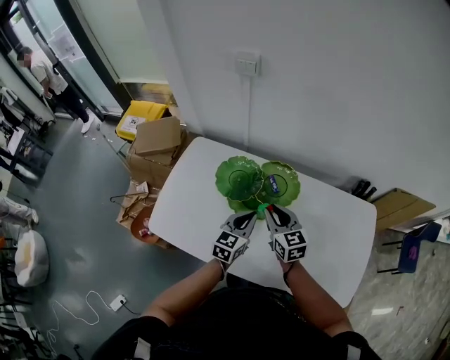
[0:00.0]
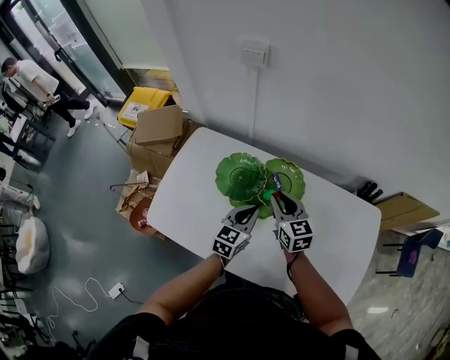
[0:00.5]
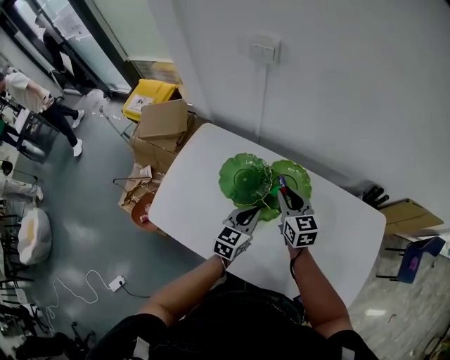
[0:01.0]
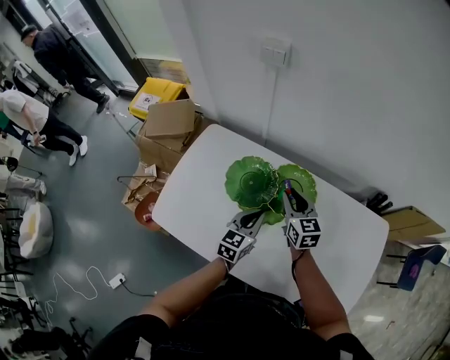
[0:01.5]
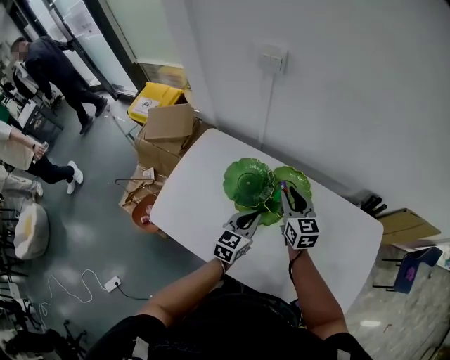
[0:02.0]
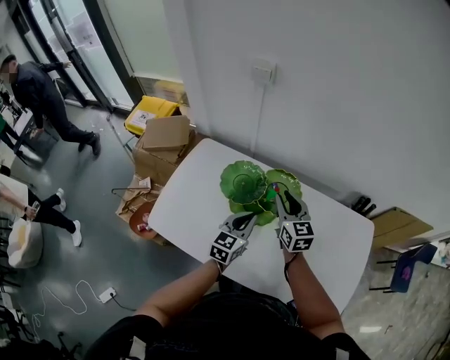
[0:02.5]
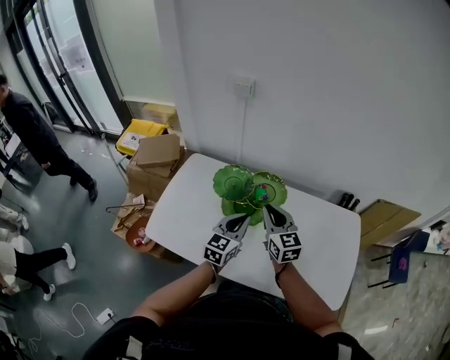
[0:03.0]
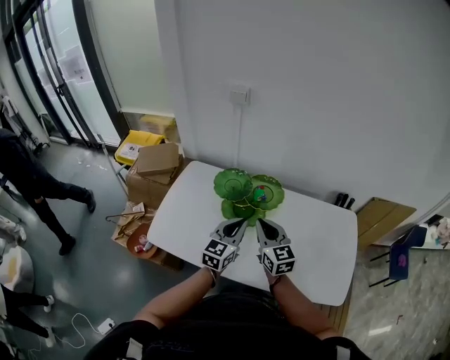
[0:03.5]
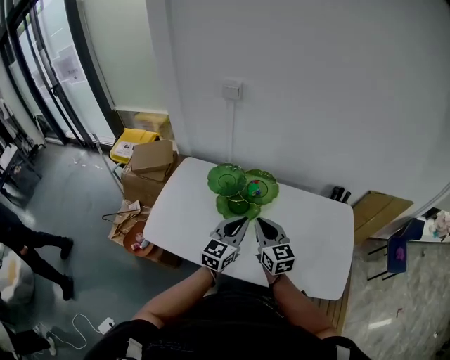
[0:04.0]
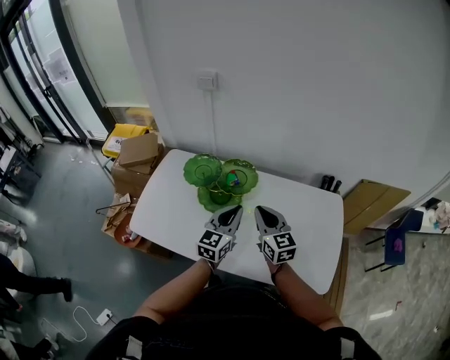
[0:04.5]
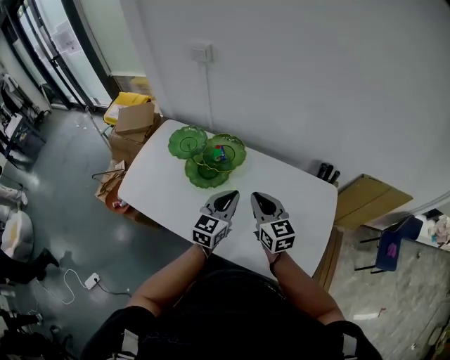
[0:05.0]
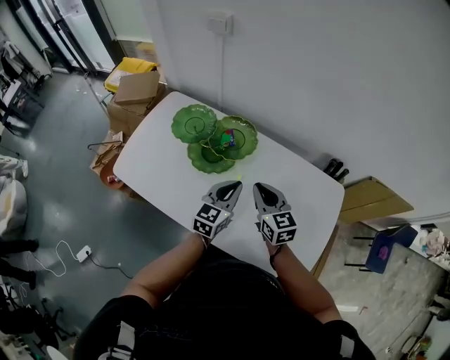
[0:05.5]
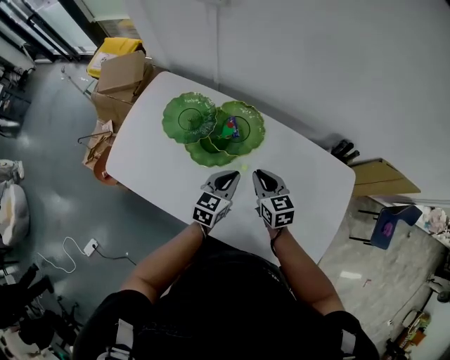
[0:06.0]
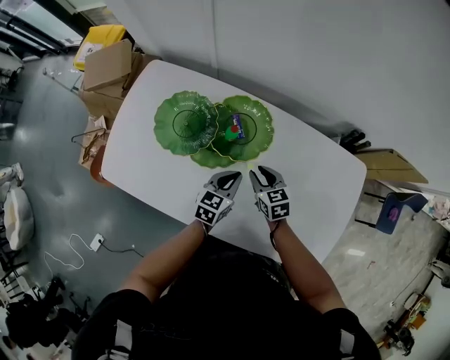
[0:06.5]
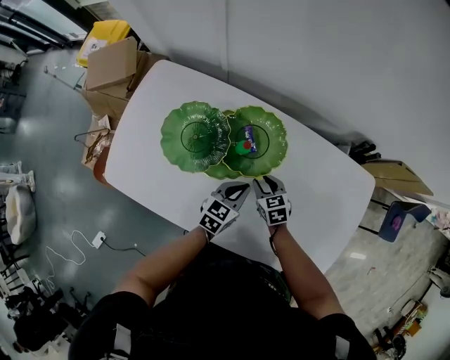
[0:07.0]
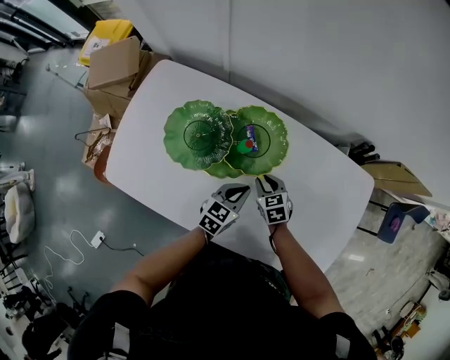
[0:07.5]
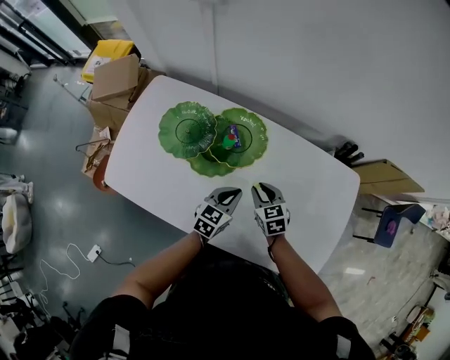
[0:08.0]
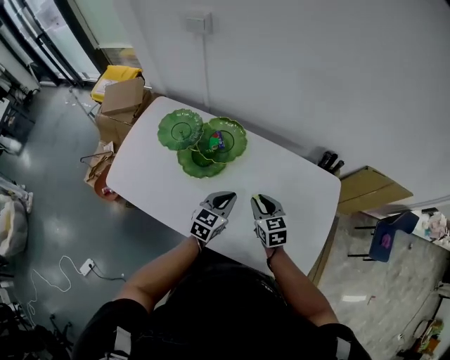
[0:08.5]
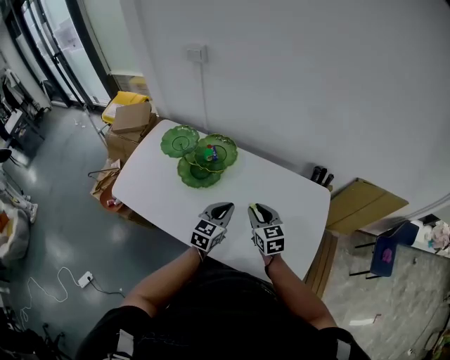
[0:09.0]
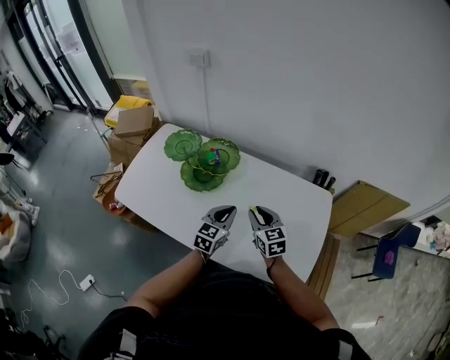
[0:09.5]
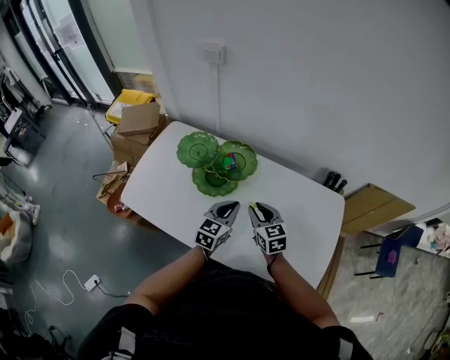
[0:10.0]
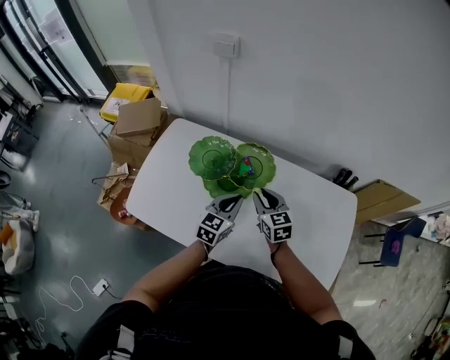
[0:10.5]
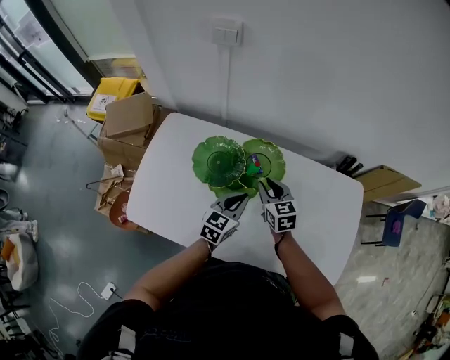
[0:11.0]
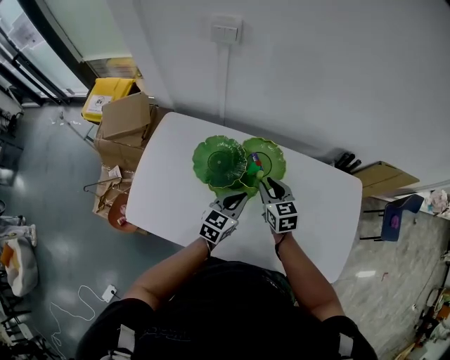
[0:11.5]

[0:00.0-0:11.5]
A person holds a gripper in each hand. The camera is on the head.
0:00.0 to 0:02.0: The right gripper moves forward, some 10 cm.
0:02.0 to 0:04.0: The right gripper shifts approximately 20 cm backward; the left gripper is displaced upward and backward by roughly 20 cm.
0:04.0 to 0:06.0: Both grippers travel together downward, to the right and forward, some 20 cm. The left gripper swivels about 20 degrees, while the right gripper rotates some 20 degrees.
0:06.0 to 0:07.5: The left gripper moves downward, about 10 cm, while the right gripper is displaced downward by roughly 15 cm, and rotates roughly 20 degrees.
0:07.5 to 0:09.5: Both grippers move upward, backward and to the right, roughly 25 cm. The left gripper swivels about 20 degrees, while the right gripper turns by approximately 30 degrees.
0:09.5 to 0:11.5: The grippers both shift to the left and forward by roughly 25 cm.

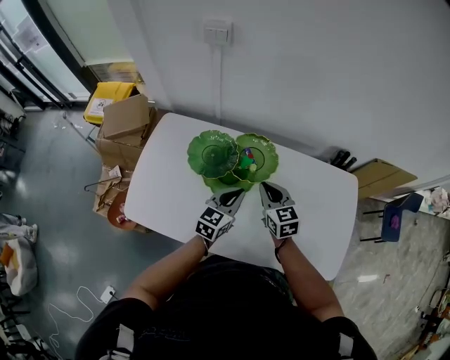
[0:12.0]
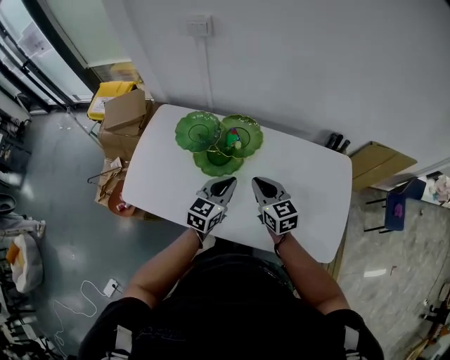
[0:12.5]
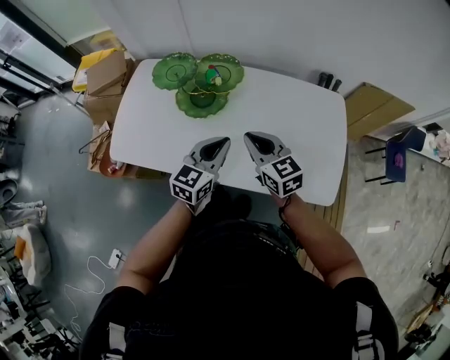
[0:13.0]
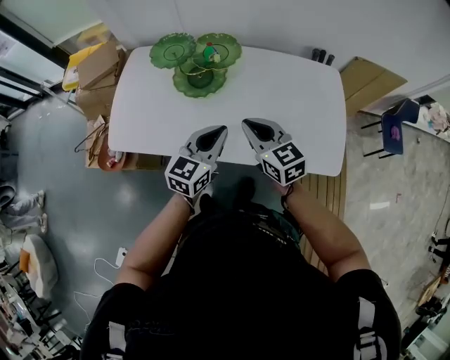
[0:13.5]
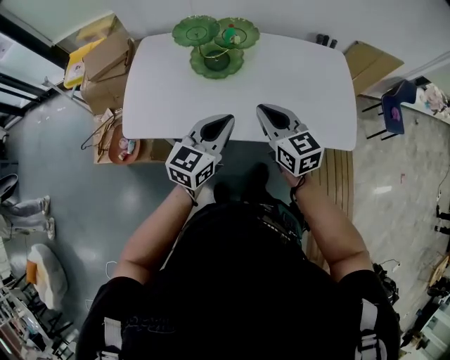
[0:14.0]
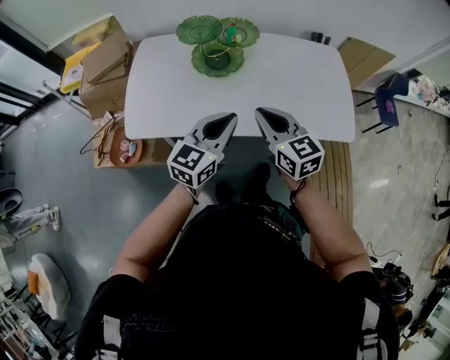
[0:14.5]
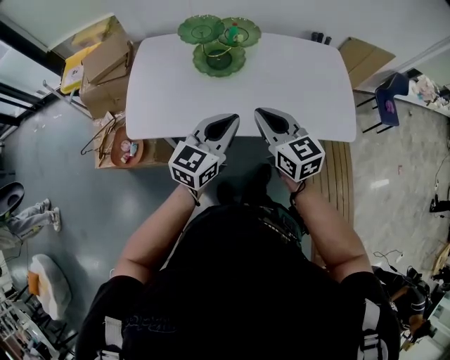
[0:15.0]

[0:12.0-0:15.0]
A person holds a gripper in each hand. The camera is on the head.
0:12.0 to 0:13.5: Both grippers move backward, approximately 20 cm.
0:13.5 to 0:15.0: Both grippers travel together to the left and backward, approximately 15 cm.

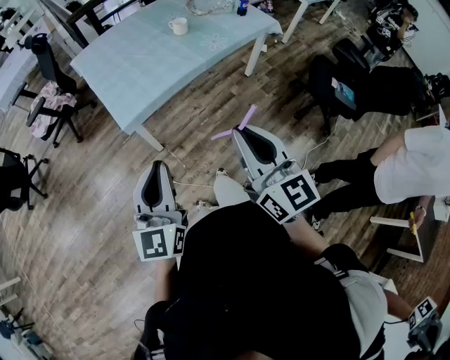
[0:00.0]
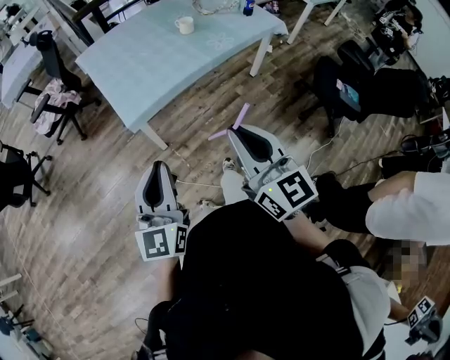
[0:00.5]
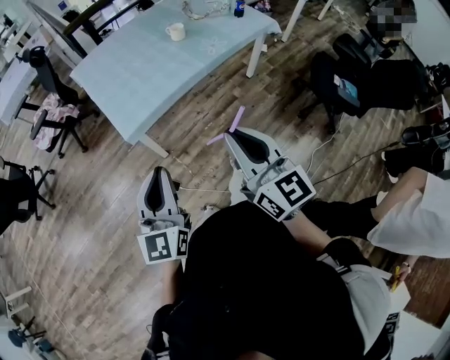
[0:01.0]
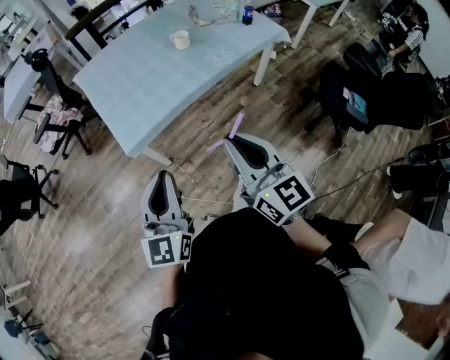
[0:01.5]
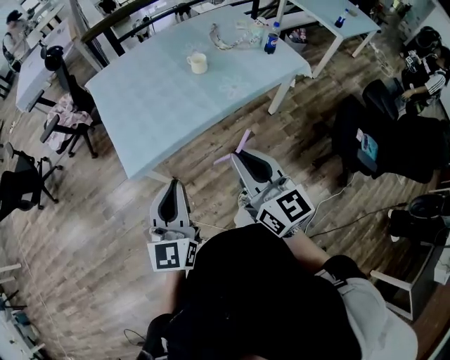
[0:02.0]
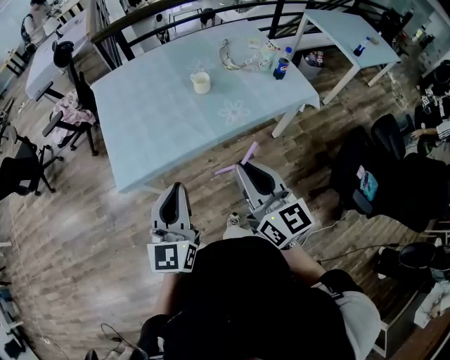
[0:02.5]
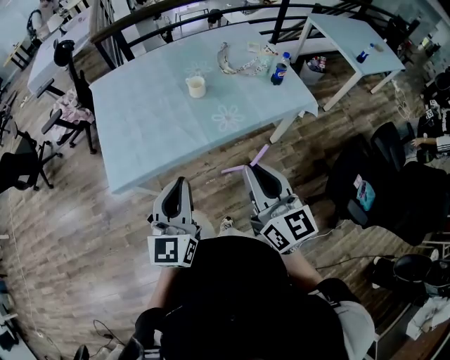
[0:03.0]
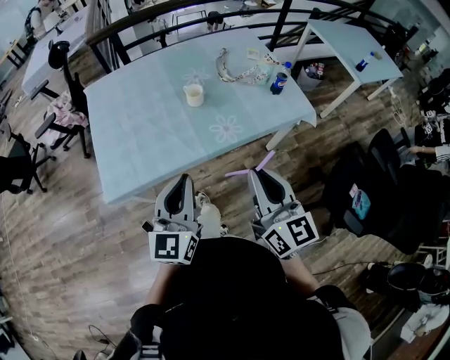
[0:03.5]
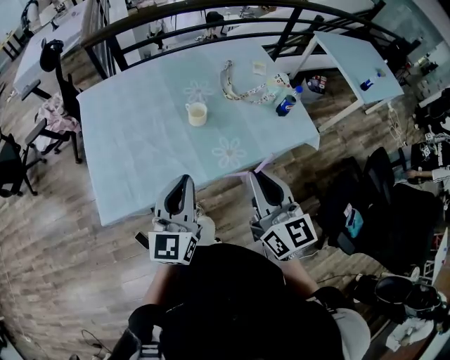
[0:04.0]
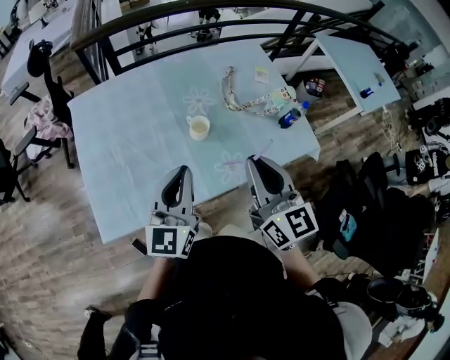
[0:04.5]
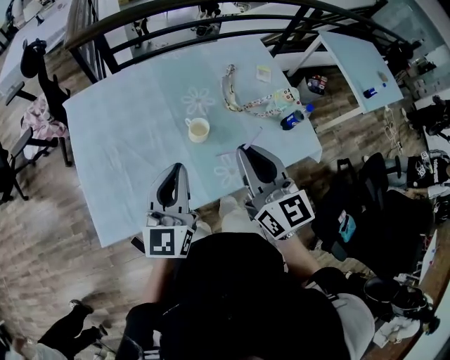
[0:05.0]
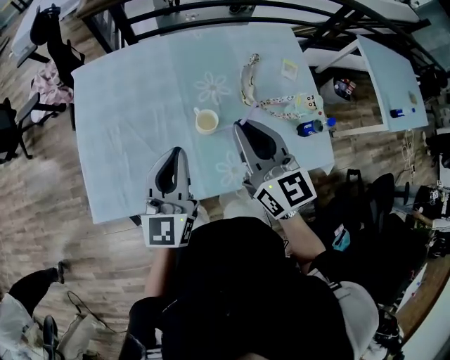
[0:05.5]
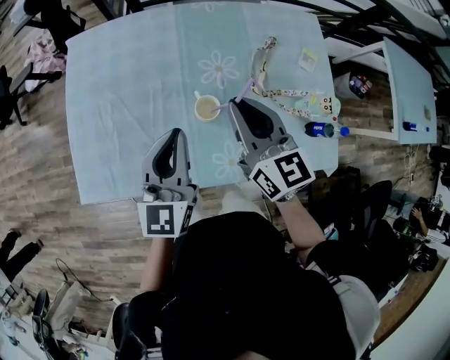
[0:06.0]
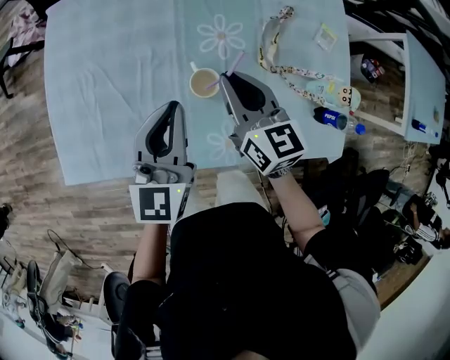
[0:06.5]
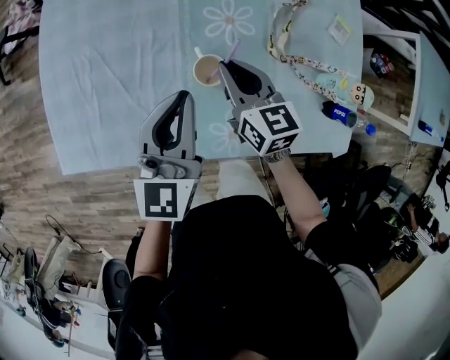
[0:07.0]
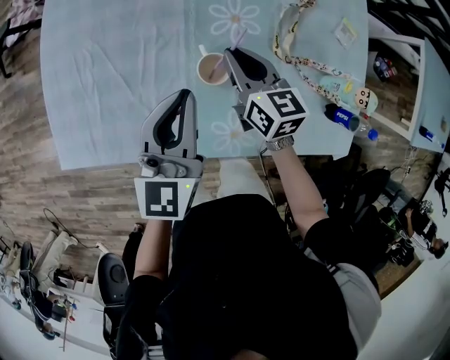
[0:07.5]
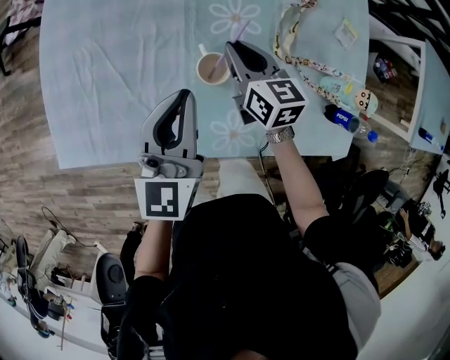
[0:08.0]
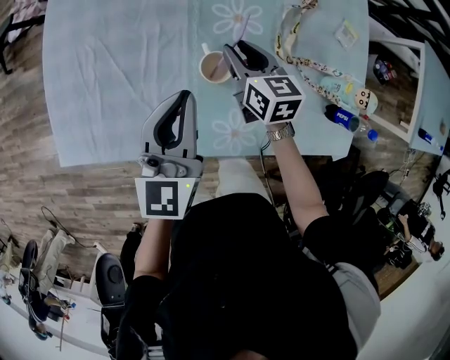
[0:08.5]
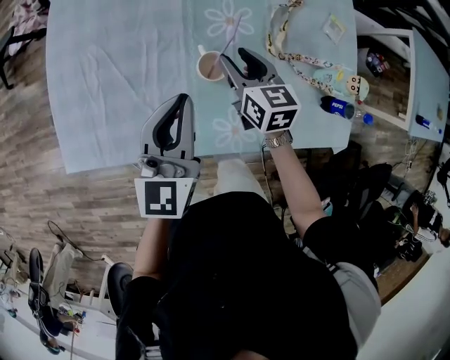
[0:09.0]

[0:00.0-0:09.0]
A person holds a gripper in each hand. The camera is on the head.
0:00.0 to 0:02.0: Both grippers move forward and to the right, about 20 cm.
0:02.0 to 0:04.5: The grippers both shift forward by about 40 cm.
0:04.5 to 0:07.0: The left gripper shifts about 20 cm forward, downward and to the right, and swivels about 20 degrees; the right gripper is displaced downward and forward by approximately 35 cm, and swivels some 40 degrees.
0:07.0 to 0:09.0: The right gripper opens.

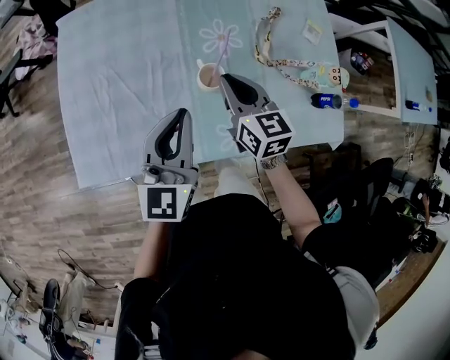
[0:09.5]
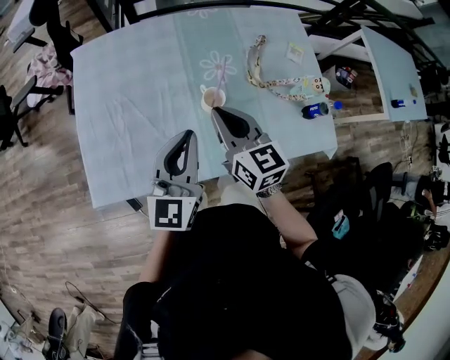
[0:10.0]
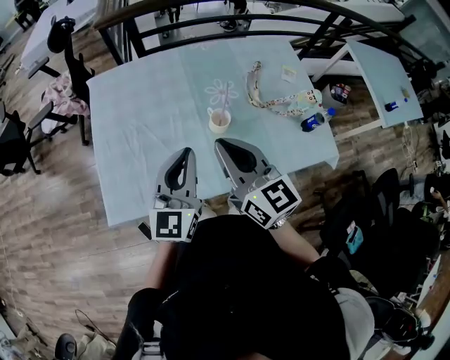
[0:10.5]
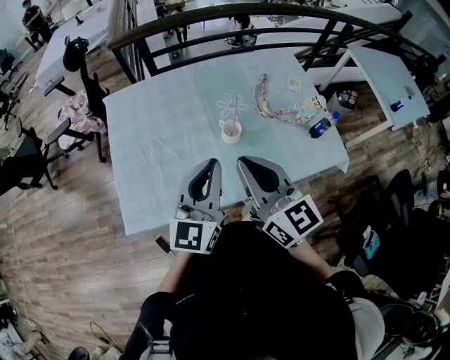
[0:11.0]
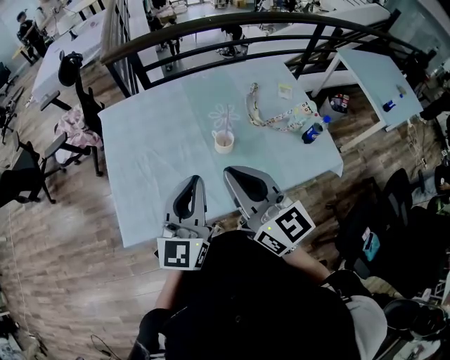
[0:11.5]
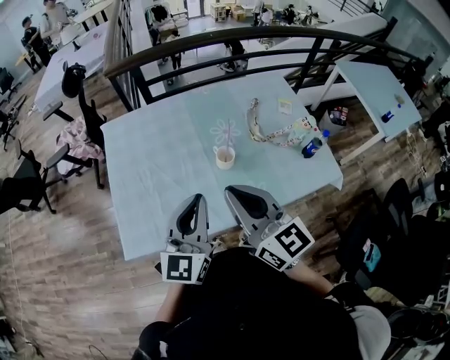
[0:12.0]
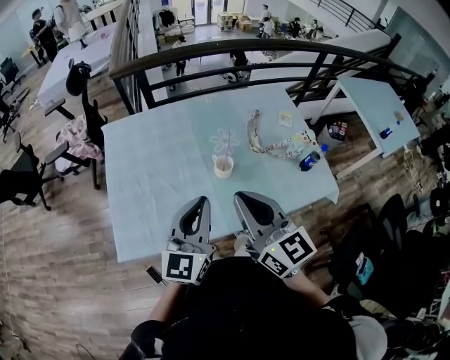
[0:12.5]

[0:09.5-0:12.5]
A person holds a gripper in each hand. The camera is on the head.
0:09.5 to 0:11.0: The left gripper moves upward and backward, roughly 15 cm, while the right gripper moves upward and backward, about 30 cm, and rotates approximately 20 degrees.
0:11.0 to 0:12.5: The grippers stay close to where they were, moving slightly.
